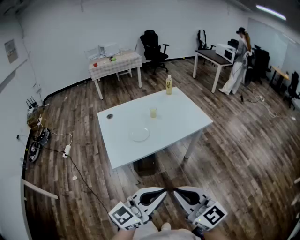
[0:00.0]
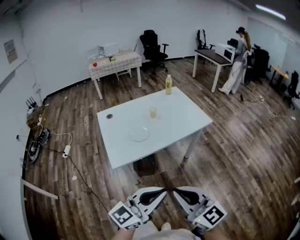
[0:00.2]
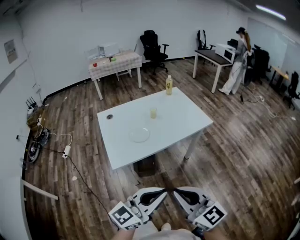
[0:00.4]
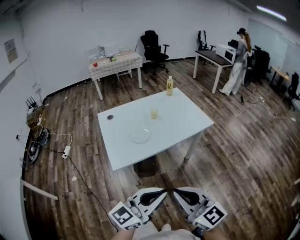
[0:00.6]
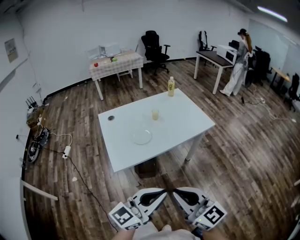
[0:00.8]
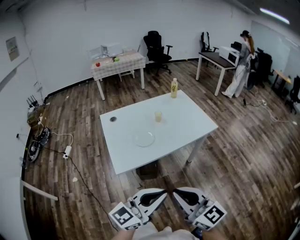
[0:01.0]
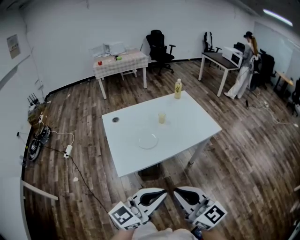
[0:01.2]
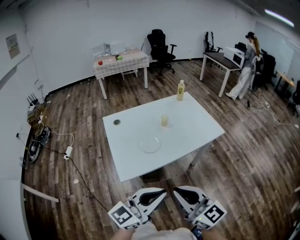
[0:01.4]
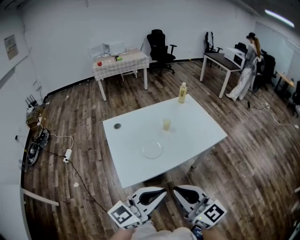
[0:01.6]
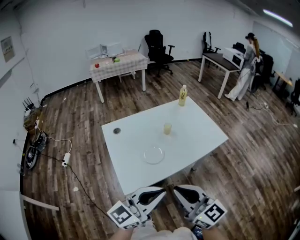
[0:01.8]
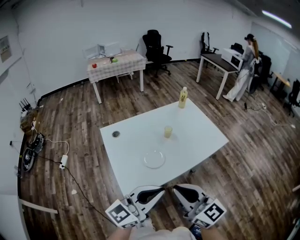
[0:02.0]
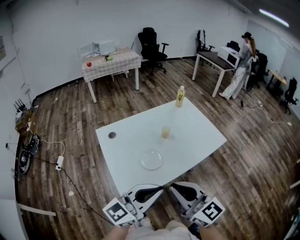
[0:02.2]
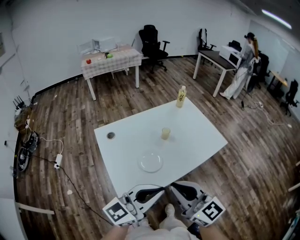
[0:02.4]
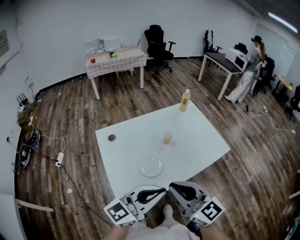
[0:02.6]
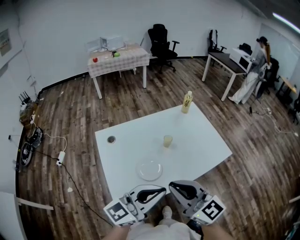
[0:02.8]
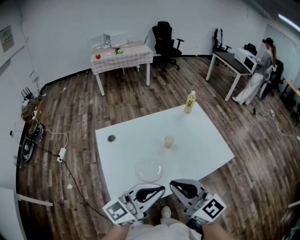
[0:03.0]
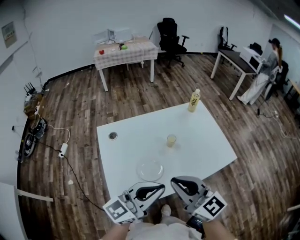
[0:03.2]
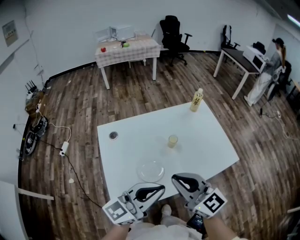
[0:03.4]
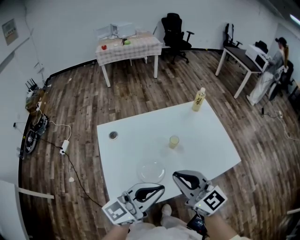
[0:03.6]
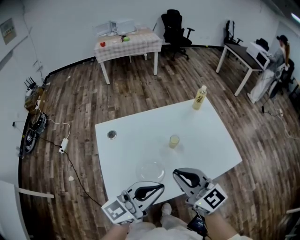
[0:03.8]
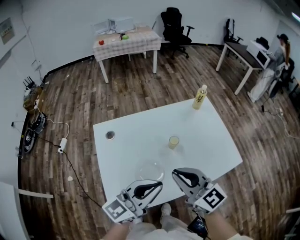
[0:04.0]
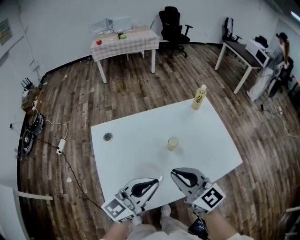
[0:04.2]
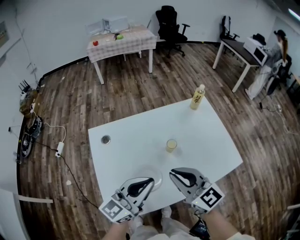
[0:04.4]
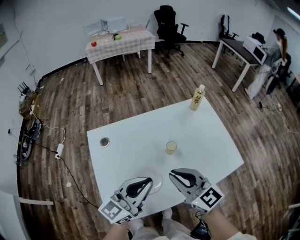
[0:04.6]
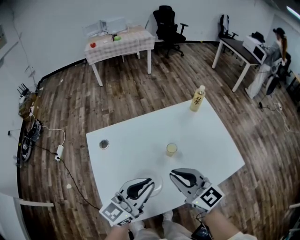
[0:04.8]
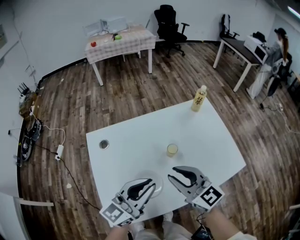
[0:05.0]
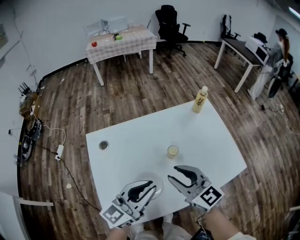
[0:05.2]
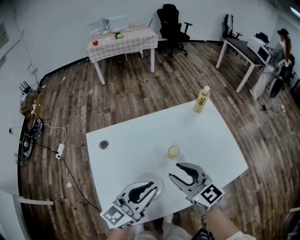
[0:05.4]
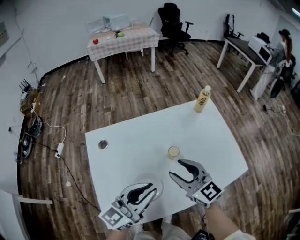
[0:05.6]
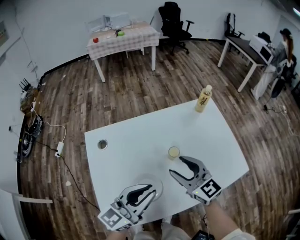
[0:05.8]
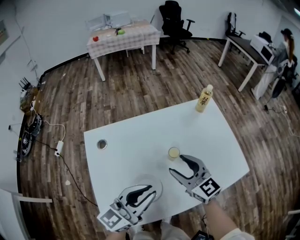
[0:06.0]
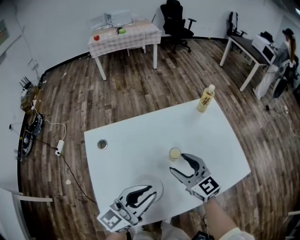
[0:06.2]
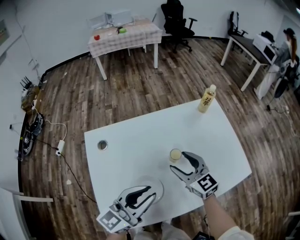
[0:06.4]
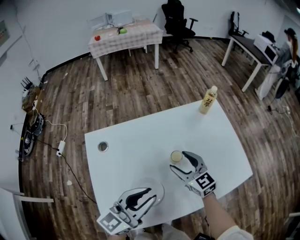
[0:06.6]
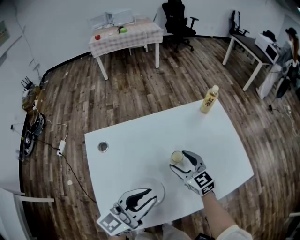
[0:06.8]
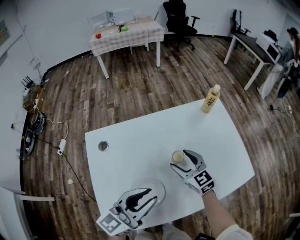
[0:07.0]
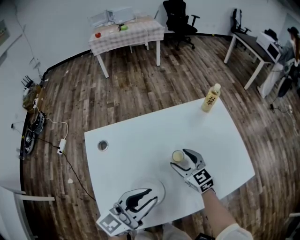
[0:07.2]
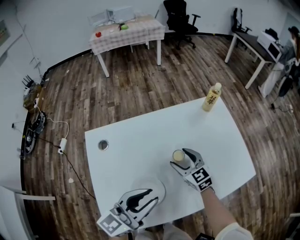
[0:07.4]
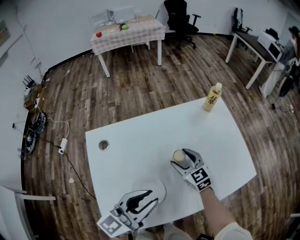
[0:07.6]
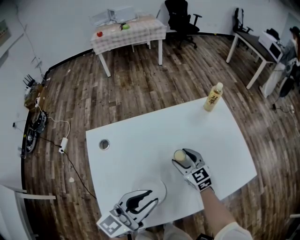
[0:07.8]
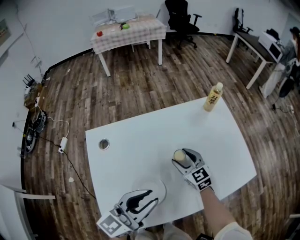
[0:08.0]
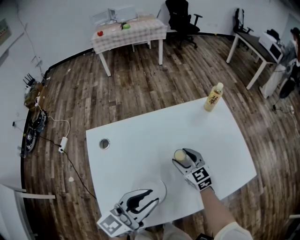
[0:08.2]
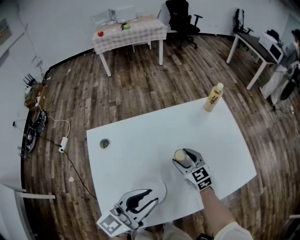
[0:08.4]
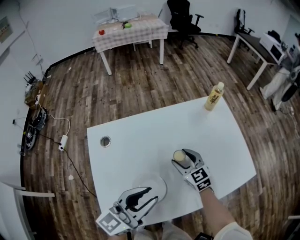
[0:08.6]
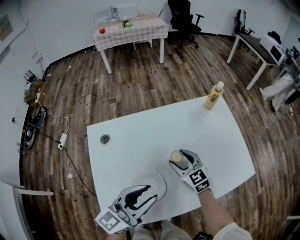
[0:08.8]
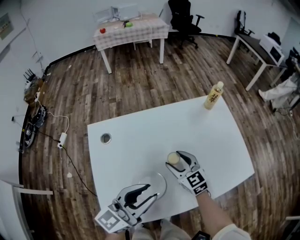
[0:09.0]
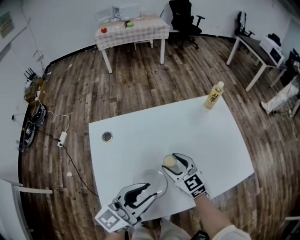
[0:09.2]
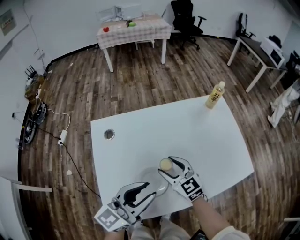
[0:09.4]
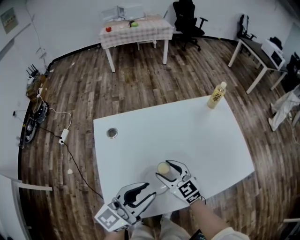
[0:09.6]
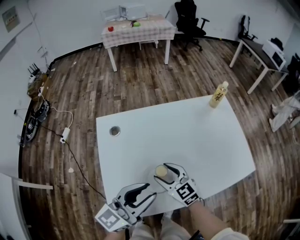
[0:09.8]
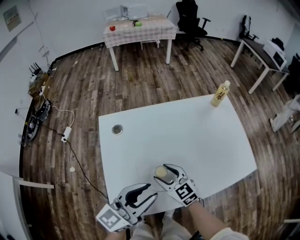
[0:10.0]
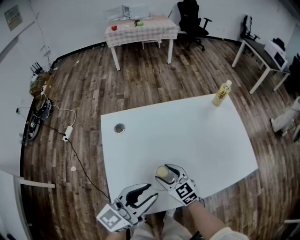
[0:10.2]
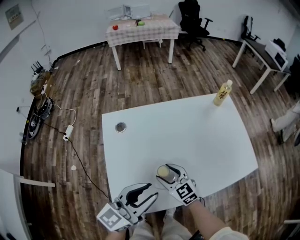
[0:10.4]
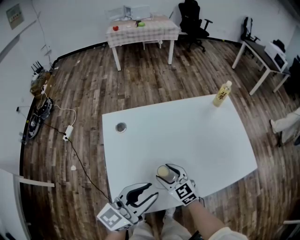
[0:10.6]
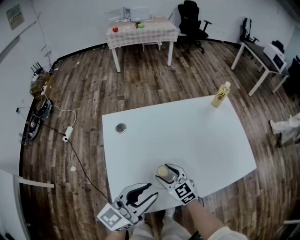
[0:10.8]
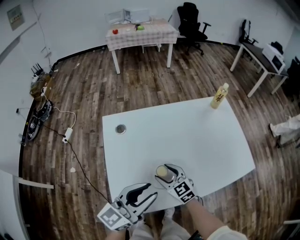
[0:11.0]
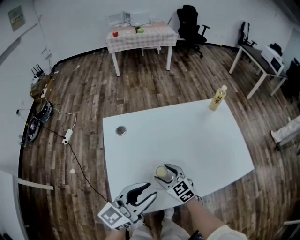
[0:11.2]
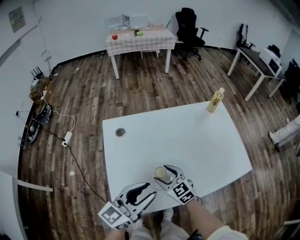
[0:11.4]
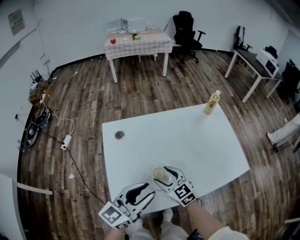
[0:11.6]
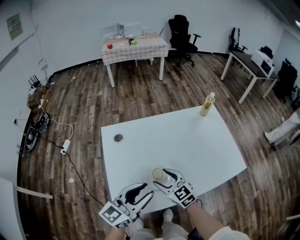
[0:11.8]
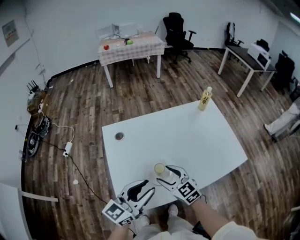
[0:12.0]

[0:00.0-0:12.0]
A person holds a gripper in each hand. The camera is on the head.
0:00.0 to 0:01.6: Both grippers travel together forward and to the left, some 15 cm.
0:01.6 to 0:03.0: The two grippers go roughly 20 cm forward.
0:03.0 to 0:04.4: The two grippers go about 15 cm forward and downward.
0:04.4 to 0:06.0: The right gripper shifts some 15 cm forward and downward, and opens.
0:06.0 to 0:07.6: The right gripper is displaced downward and forward by about 15 cm.
0:07.6 to 0:09.0: The right gripper moves some 5 cm.
0:09.0 to 0:10.4: The left gripper heads backward and to the left, covering some 10 cm. The right gripper goes some 15 cm backward and to the left.
0:10.4 to 0:12.0: The right gripper goes about 10 cm upward.

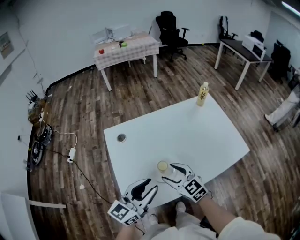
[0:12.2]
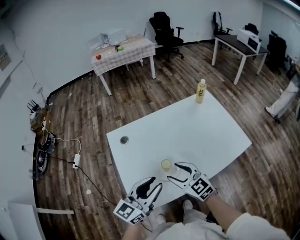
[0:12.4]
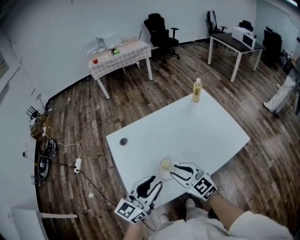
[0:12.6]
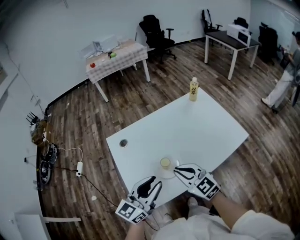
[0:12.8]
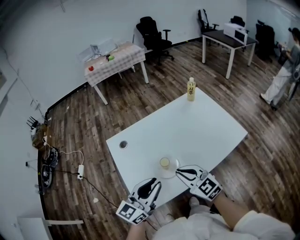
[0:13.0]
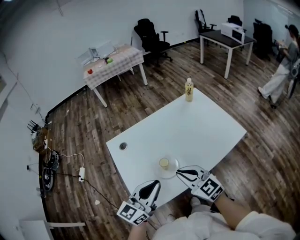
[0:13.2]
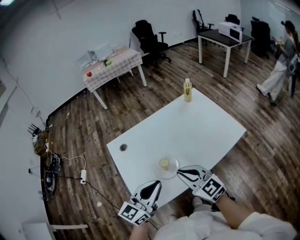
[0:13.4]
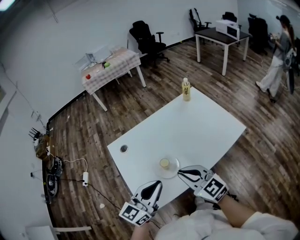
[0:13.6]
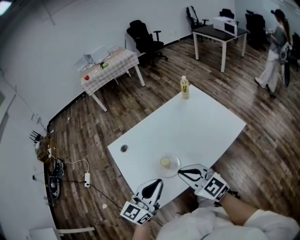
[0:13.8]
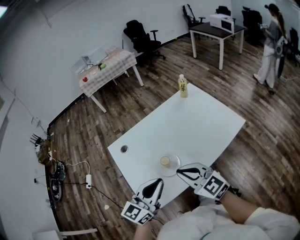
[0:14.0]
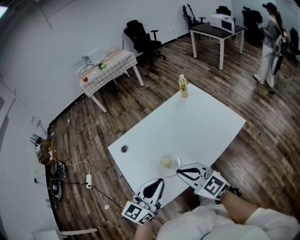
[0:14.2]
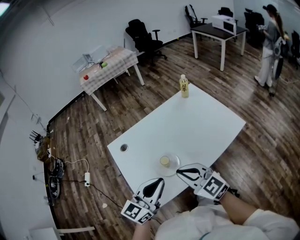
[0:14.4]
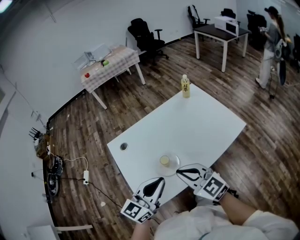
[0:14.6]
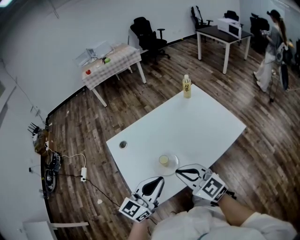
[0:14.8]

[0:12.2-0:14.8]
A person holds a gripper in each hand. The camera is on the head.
0:12.2 to 0:13.4: The right gripper goes approximately 10 cm upward and backward, and closes. The left gripper closes its fingers.
0:13.4 to 0:14.8: The grippers make only small movements.

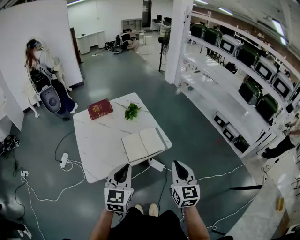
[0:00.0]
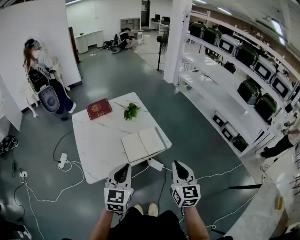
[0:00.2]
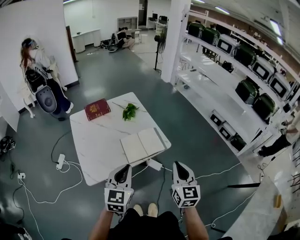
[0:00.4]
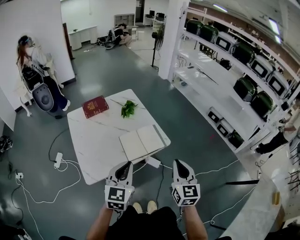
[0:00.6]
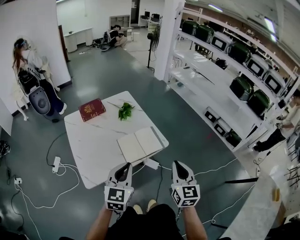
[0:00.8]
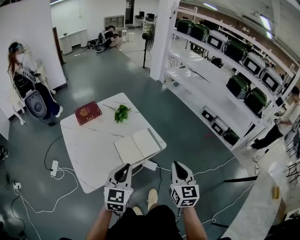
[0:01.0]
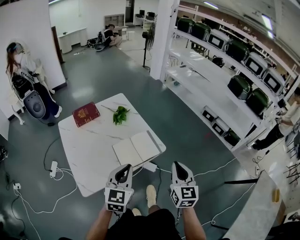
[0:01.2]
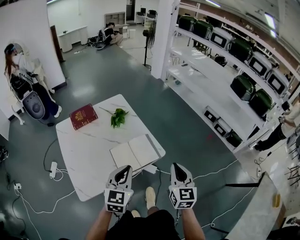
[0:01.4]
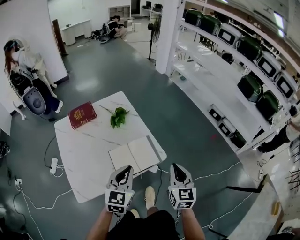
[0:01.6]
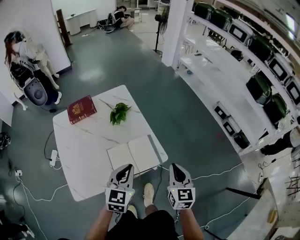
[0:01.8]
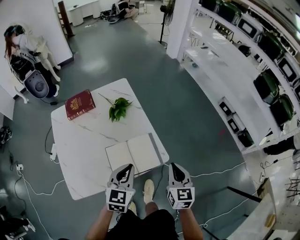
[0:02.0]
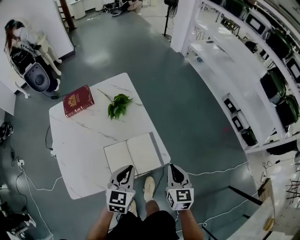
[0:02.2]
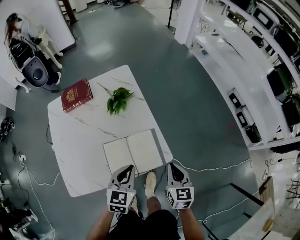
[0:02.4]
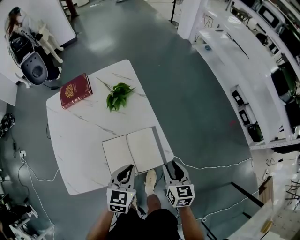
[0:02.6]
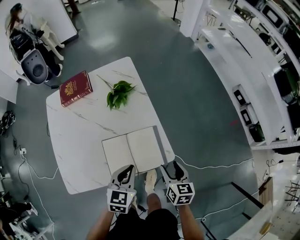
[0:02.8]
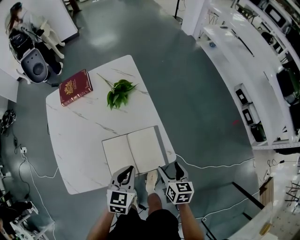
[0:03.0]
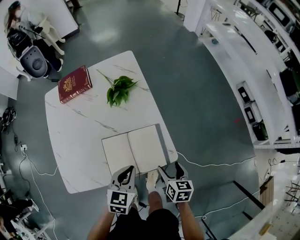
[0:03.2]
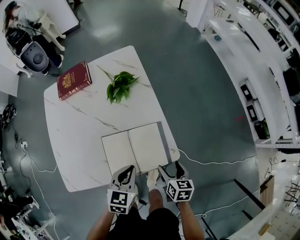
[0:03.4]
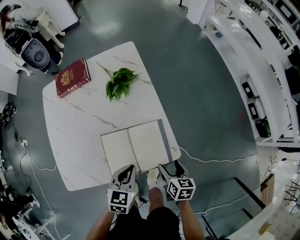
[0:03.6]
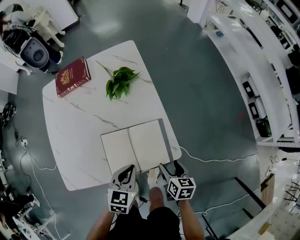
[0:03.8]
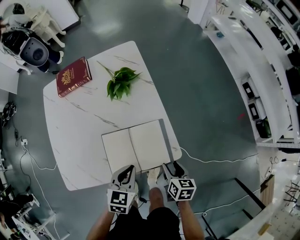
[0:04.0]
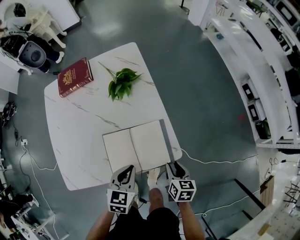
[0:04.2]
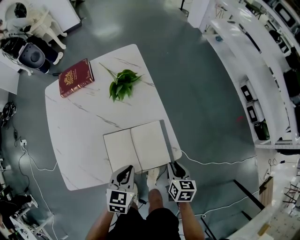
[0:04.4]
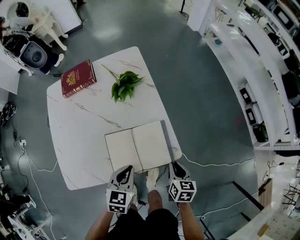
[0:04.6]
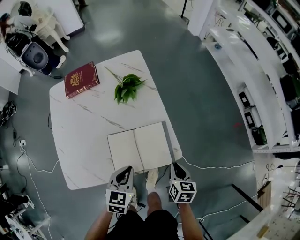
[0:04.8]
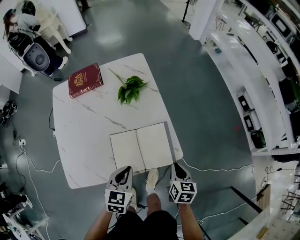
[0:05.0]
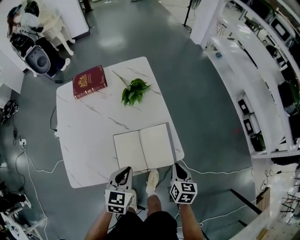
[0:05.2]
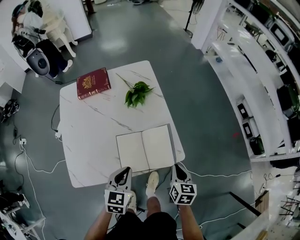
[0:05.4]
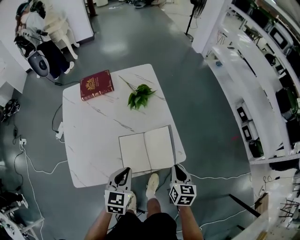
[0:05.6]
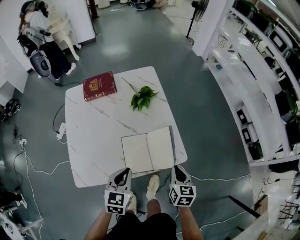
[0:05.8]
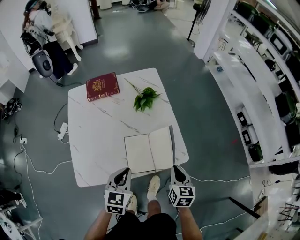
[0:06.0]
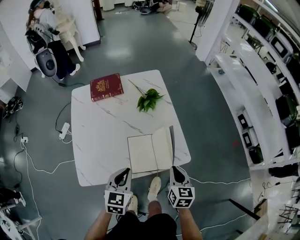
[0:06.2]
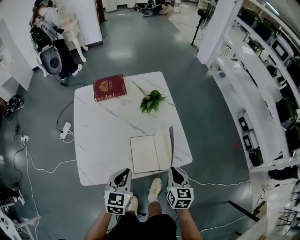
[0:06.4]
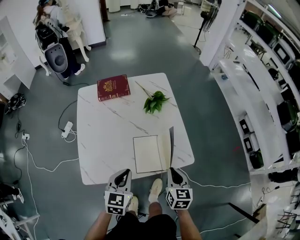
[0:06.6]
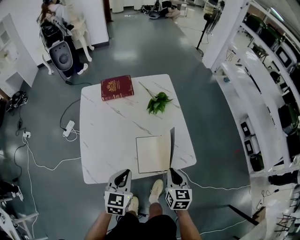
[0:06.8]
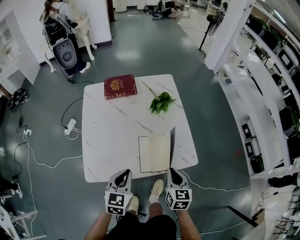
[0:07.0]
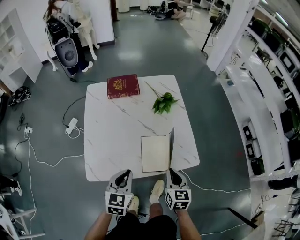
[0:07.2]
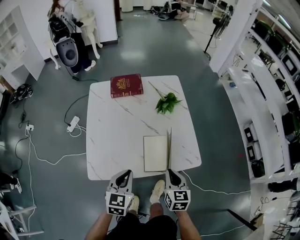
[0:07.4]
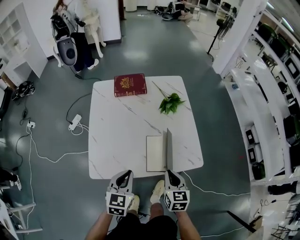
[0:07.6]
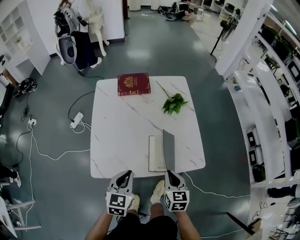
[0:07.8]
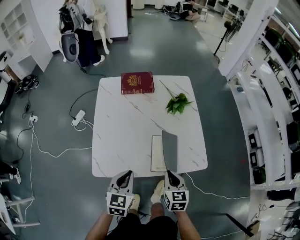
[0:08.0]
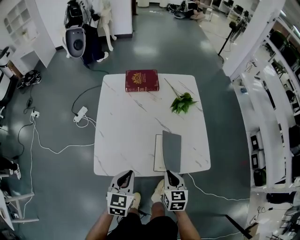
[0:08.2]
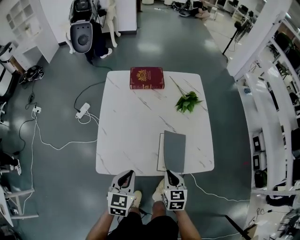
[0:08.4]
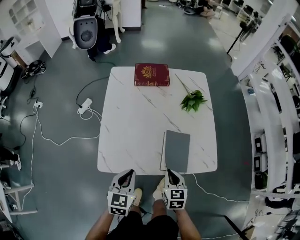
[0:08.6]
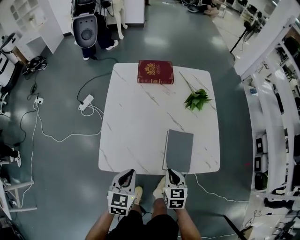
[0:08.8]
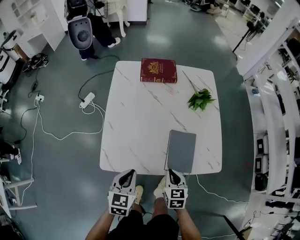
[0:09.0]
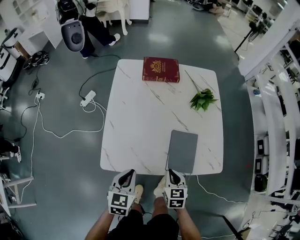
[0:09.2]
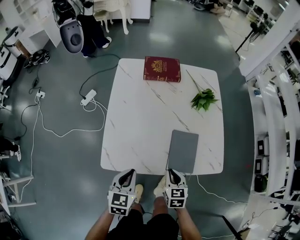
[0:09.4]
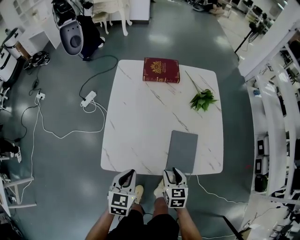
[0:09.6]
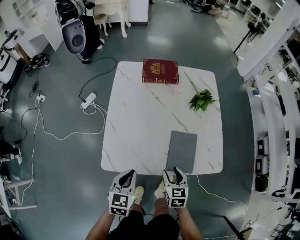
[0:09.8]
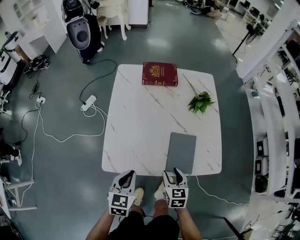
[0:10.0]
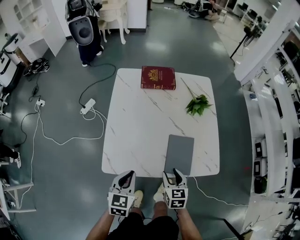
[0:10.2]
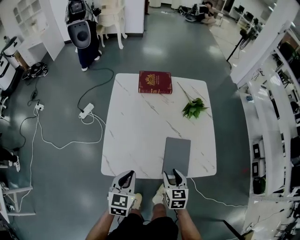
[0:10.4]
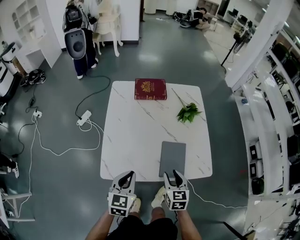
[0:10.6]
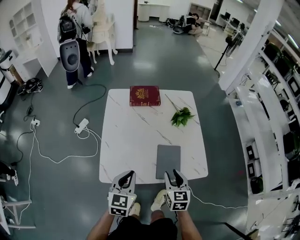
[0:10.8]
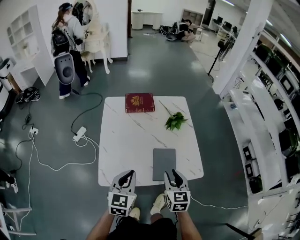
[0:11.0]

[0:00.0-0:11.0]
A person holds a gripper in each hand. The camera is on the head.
0:00.0 to 0:01.6: The grippers both shift forward by some 15 cm.
0:01.6 to 0:03.2: The two grippers go some 25 cm downward and forward. The right gripper turns by roughly 40 degrees, and opens, while the left gripper changes its angle by approximately 20 degrees.
0:03.2 to 0:04.8: The right gripper closes.
0:04.8 to 0:06.2: The left gripper is displaced to the left, upward and backward by roughly 15 cm; the right gripper shifts roughly 15 cm upward and to the left.
0:06.2 to 0:07.8: Both grippers move to the left, roughly 10 cm.
0:07.8 to 0:09.4: The left gripper travels to the left and downward by roughly 10 cm, while the right gripper goes approximately 15 cm downward and to the left.
0:09.4 to 0:11.0: Both grippers move upward, approximately 15 cm. The right gripper turns by roughly 20 degrees.
